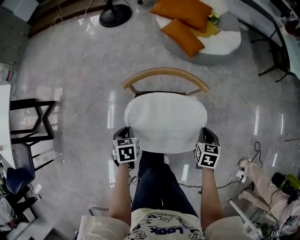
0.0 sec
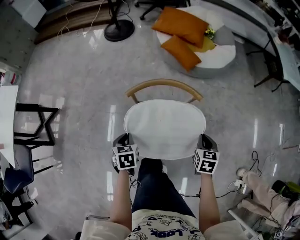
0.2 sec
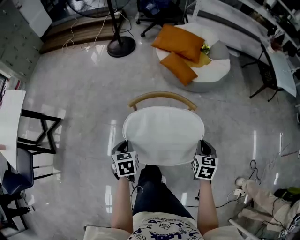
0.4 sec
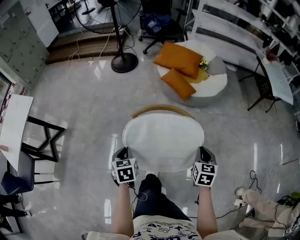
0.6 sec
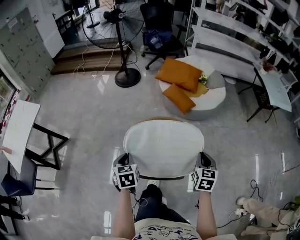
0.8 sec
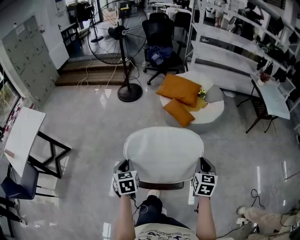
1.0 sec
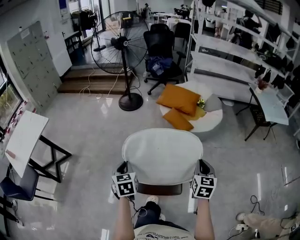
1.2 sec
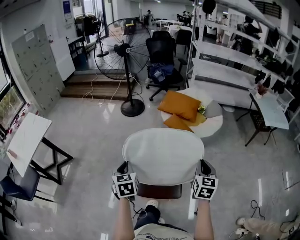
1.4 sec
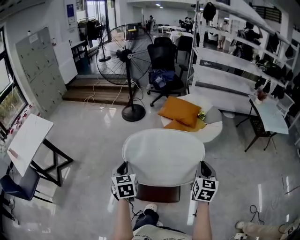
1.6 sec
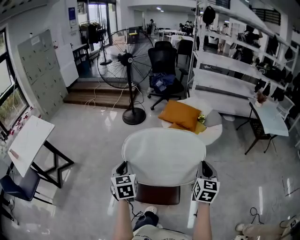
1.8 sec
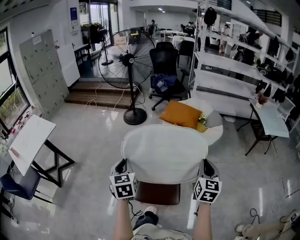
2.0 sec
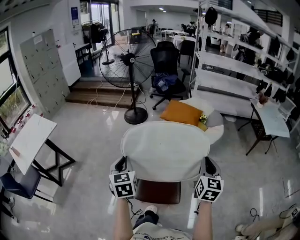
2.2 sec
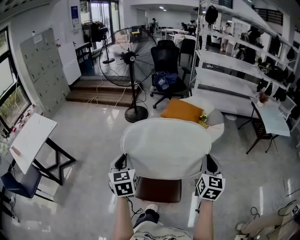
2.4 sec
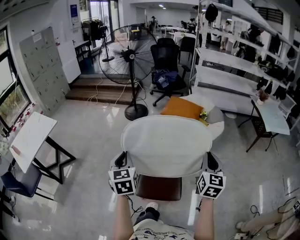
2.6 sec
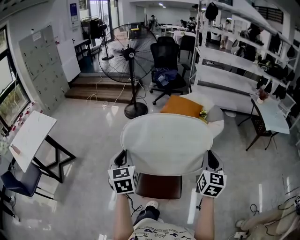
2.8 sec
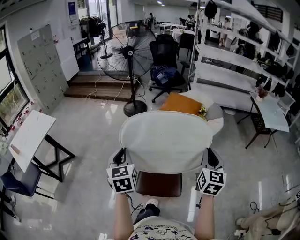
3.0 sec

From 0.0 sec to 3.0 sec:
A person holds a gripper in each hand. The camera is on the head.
From 0.0 sec to 1.6 sec: The two grippers go about 50 cm upward. The left gripper angles its fingers upward, by about 40 degrees. The right gripper tilts its fingers roughly 40 degrees upward.
From 1.6 sec to 3.0 sec: Both grippers move upward, some 10 cm.

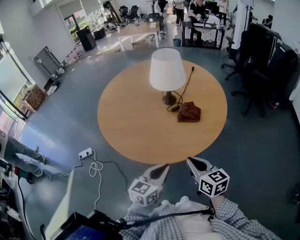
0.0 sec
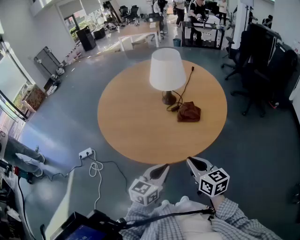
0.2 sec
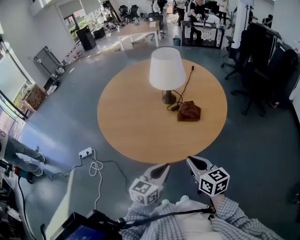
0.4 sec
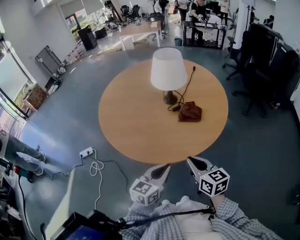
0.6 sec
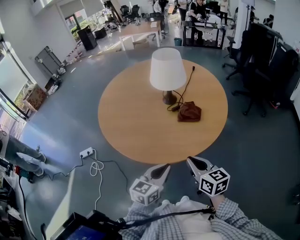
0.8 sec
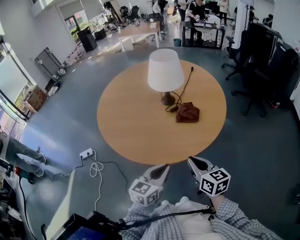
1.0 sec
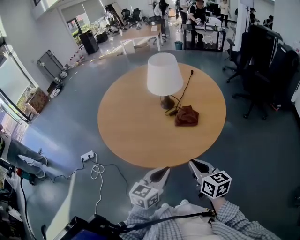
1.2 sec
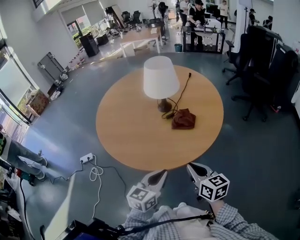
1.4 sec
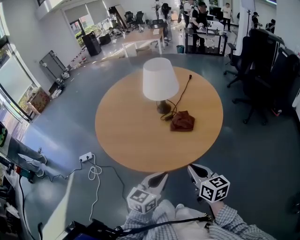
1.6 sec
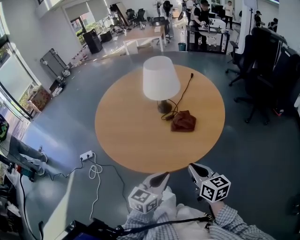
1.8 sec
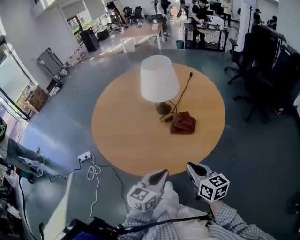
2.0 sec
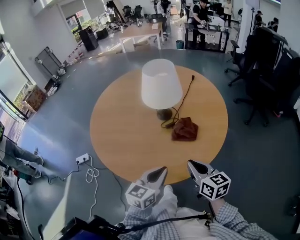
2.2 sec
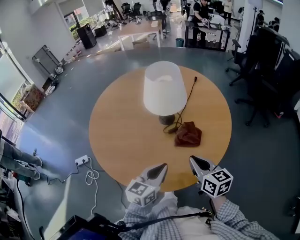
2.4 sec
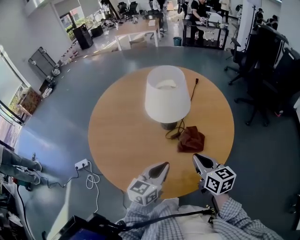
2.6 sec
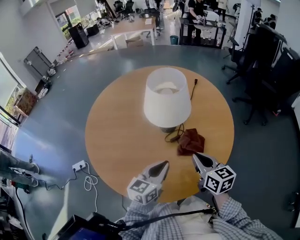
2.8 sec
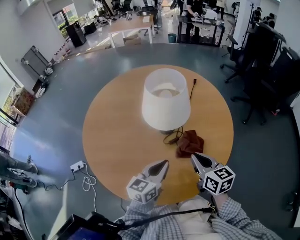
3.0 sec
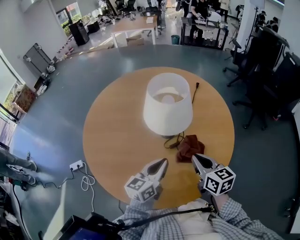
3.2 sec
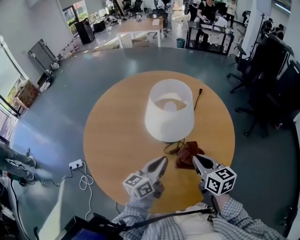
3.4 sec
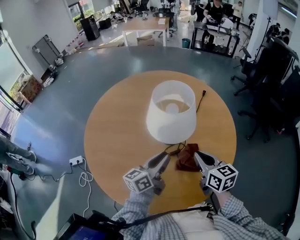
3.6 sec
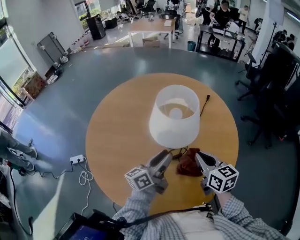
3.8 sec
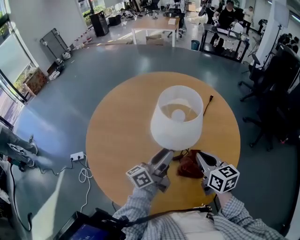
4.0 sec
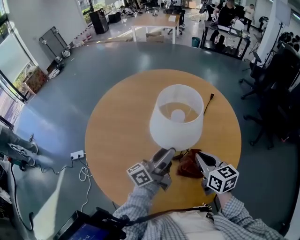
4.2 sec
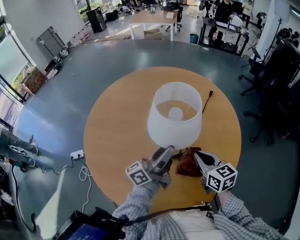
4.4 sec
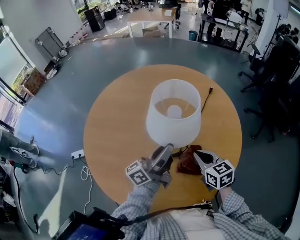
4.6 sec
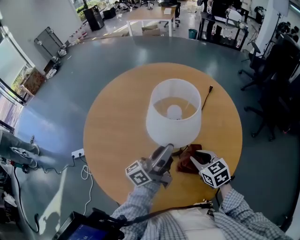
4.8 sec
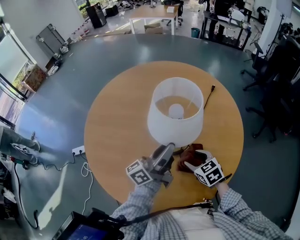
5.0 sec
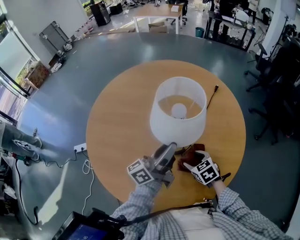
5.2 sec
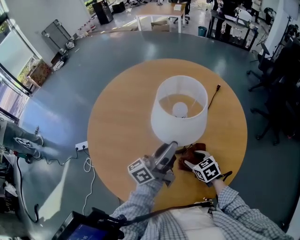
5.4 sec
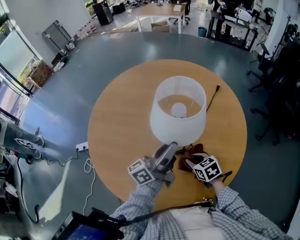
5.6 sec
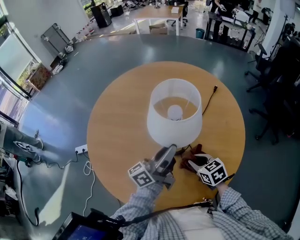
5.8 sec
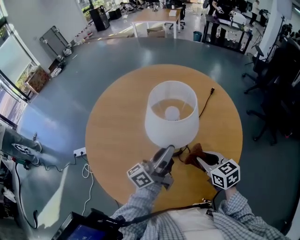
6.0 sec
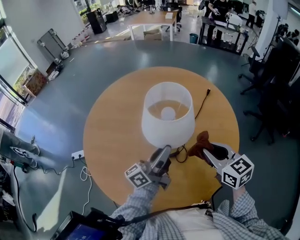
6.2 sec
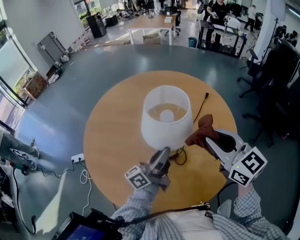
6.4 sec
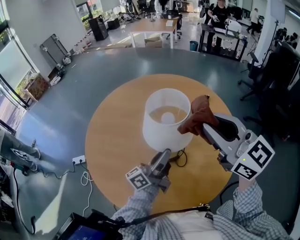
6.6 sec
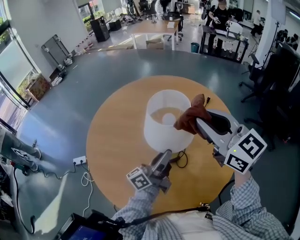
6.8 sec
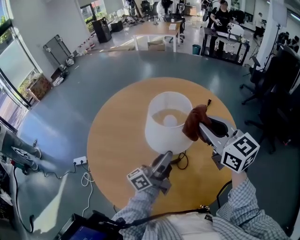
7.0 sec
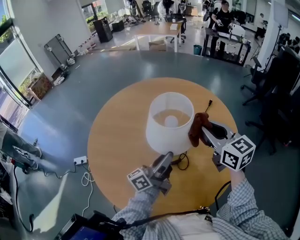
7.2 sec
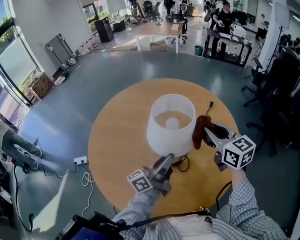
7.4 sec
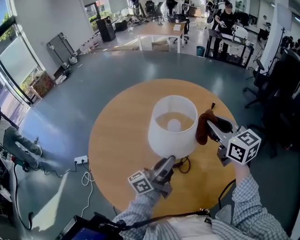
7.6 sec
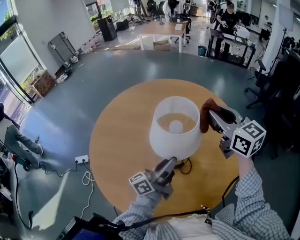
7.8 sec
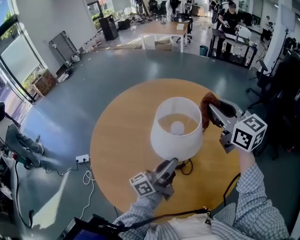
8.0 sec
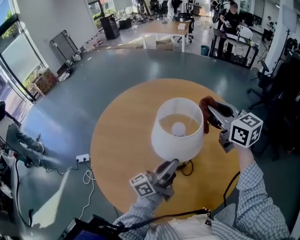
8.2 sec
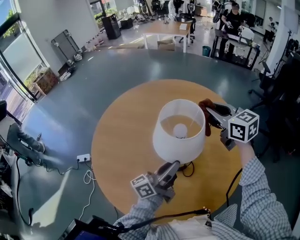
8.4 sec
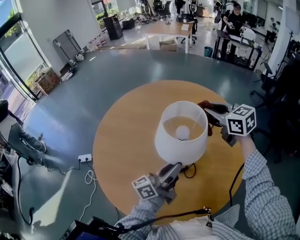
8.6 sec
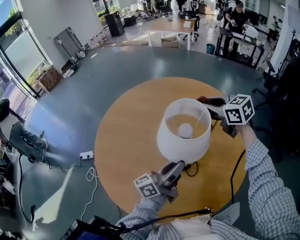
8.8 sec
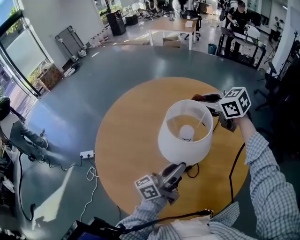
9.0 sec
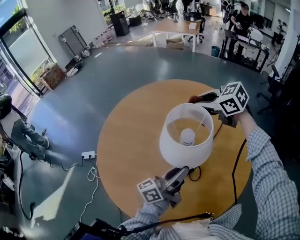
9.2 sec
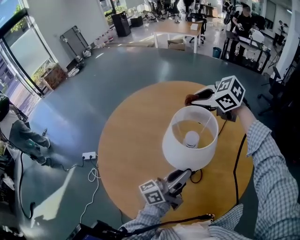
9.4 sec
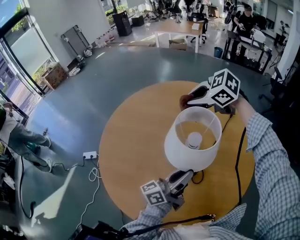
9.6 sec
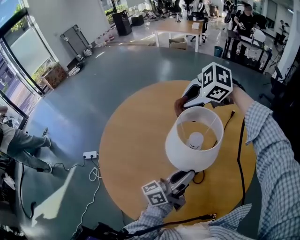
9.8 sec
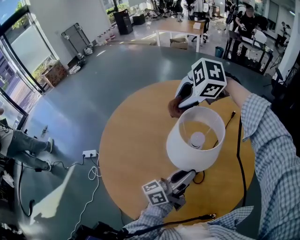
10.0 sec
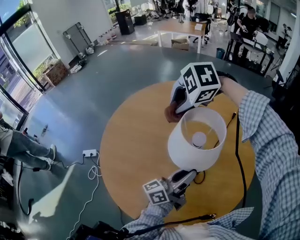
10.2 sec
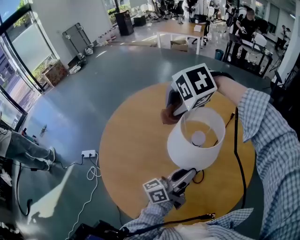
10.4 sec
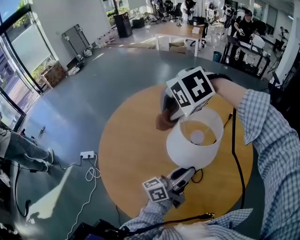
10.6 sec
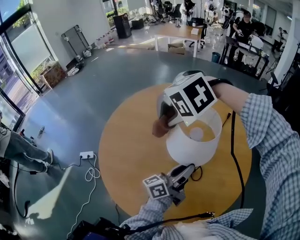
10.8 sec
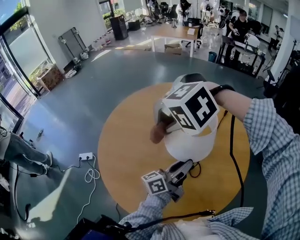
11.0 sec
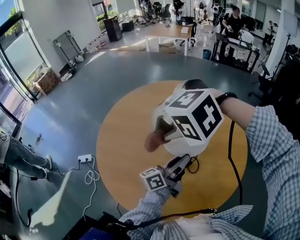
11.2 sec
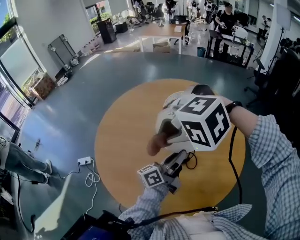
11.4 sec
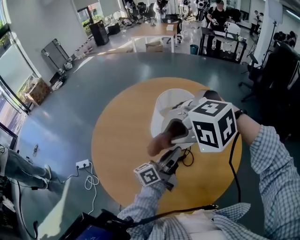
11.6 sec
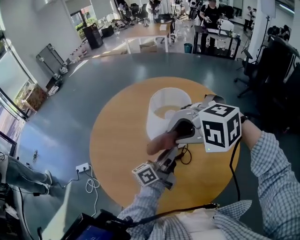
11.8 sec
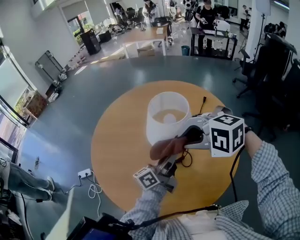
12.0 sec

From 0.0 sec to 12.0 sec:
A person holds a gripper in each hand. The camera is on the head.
From 0.0 sec to 1.6 sec: The right gripper heads to the right, covering roughly 5 cm.
From 1.6 sec to 3.0 sec: Both grippers move forward, approximately 20 cm.
From 3.0 sec to 4.4 sec: The right gripper heads forward, covering approximately 10 cm. Meanwhile the left gripper shifts roughly 15 cm forward and upward, tips its fingers upward by about 40 degrees, and opens its fingers.
From 4.4 sec to 6.0 sec: The left gripper closes up. Meanwhile the right gripper travels downward and back again, approximately 15 cm each way, and opens, then closes again.
From 6.0 sec to 7.6 sec: The right gripper moves upward and forward, roughly 25 cm, and rotates some 30 degrees.
From 7.6 sec to 9.0 sec: The right gripper shifts approximately 15 cm forward and to the left, and changes its angle by approximately 30 degrees.
From 9.0 sec to 10.4 sec: The right gripper changes place by about 15 cm, and points its fingers roughly 40 degrees further downward.
From 10.4 sec to 12.0 sec: The right gripper changes place by about 20 cm, and rotates roughly 30 degrees.

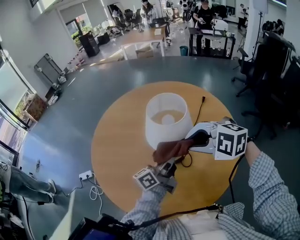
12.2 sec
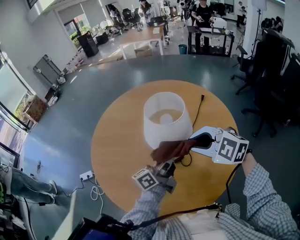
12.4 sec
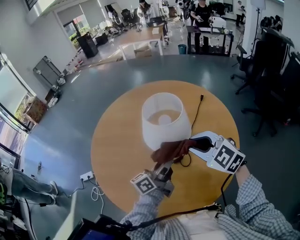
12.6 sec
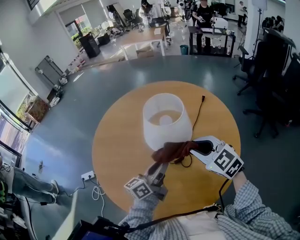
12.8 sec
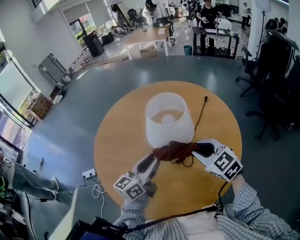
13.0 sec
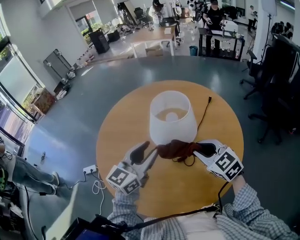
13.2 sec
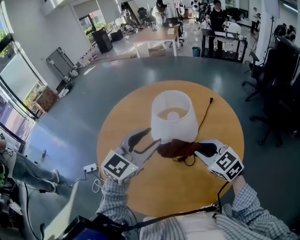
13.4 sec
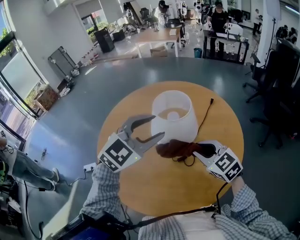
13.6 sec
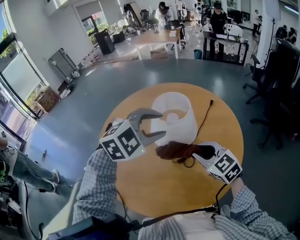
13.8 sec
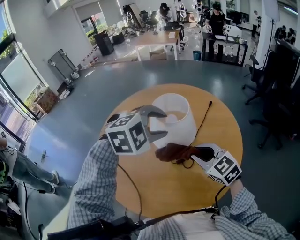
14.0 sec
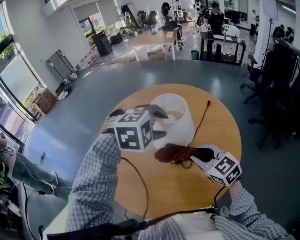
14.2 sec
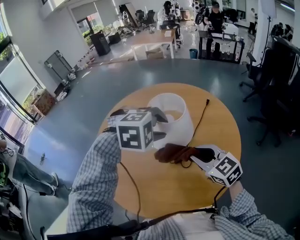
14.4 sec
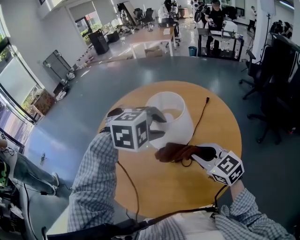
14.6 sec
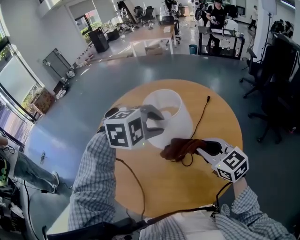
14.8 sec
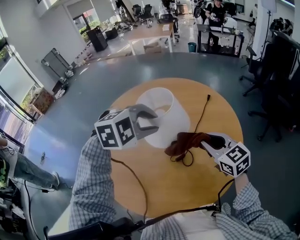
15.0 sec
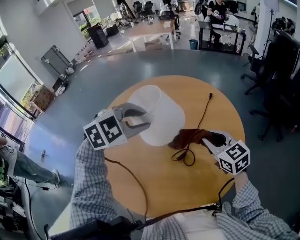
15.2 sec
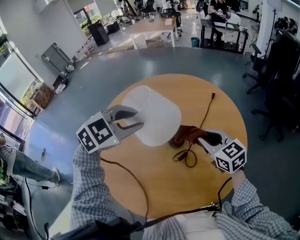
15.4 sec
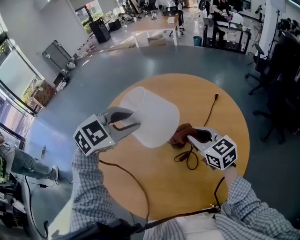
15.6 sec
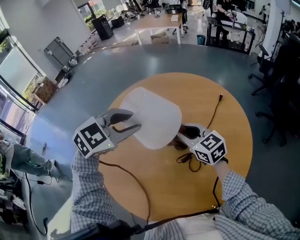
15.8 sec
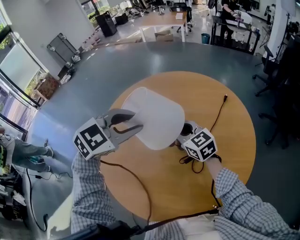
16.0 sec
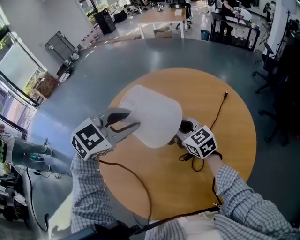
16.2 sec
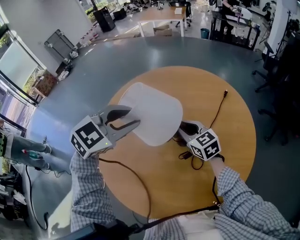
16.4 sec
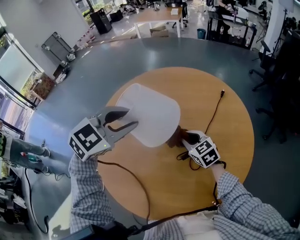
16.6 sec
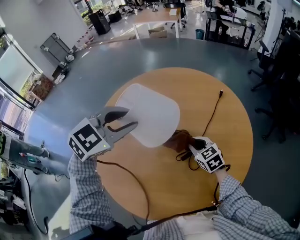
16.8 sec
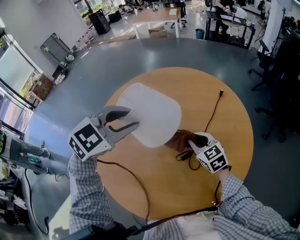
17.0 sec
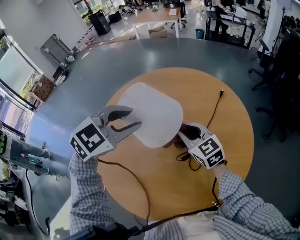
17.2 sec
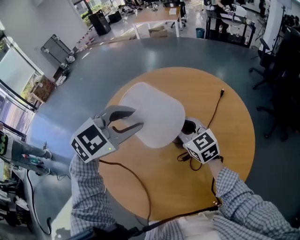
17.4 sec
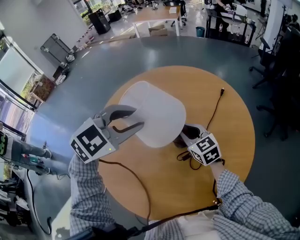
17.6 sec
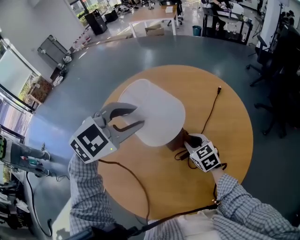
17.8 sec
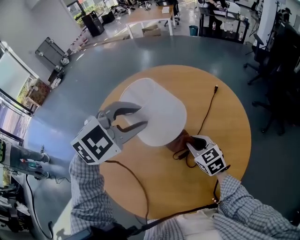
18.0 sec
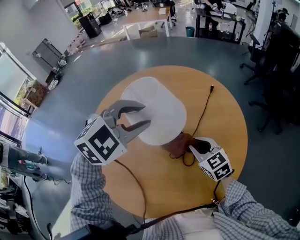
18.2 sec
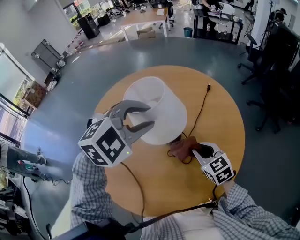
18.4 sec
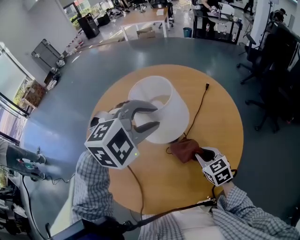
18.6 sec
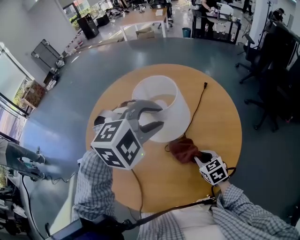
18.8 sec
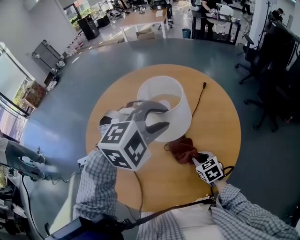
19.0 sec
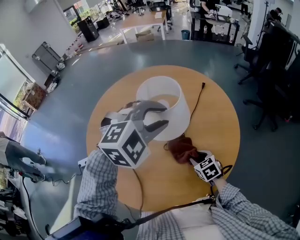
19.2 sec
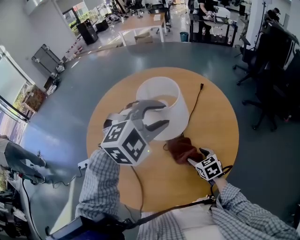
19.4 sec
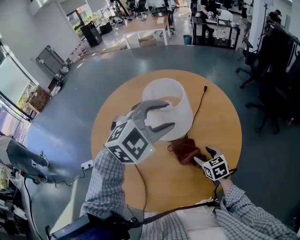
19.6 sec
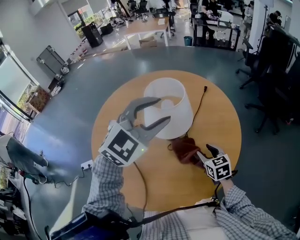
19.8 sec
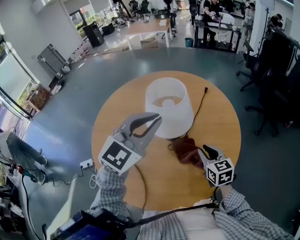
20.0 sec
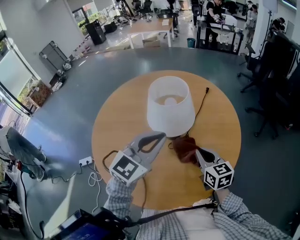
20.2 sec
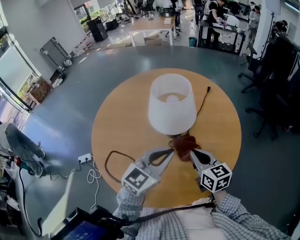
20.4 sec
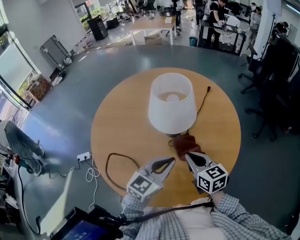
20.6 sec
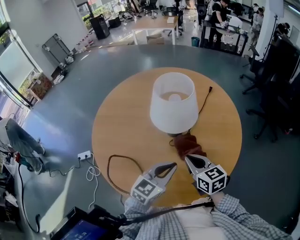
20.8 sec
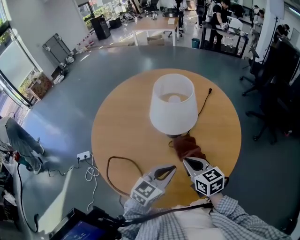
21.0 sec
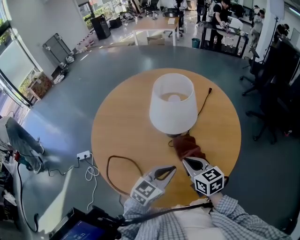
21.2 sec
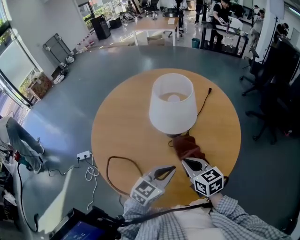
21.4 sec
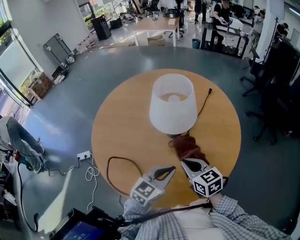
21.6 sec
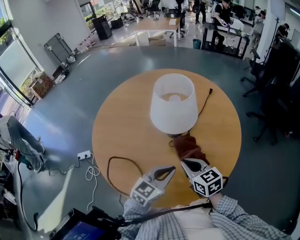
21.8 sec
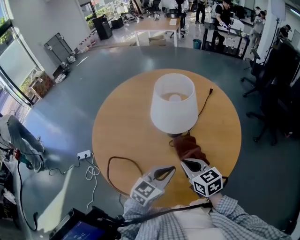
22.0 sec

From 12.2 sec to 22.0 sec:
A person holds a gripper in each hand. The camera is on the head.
From 12.2 sec to 13.6 sec: The right gripper shifts some 5 cm downward, and swivels about 40 degrees. The left gripper shifts some 15 cm upward, twists approximately 80 degrees clockwise, seen from behind, and opens its fingers.
From 13.6 sec to 15.0 sec: The right gripper ends up roughly 5 cm from where it was, while the left gripper tilts its fingers some 30 degrees downward, and closes.
From 15.0 sec to 16.4 sec: The right gripper moves to the left, forward and downward, roughly 20 cm. The left gripper is displaced to the left and forward by approximately 10 cm, and swivels about 30 degrees.
From 16.4 sec to 17.8 sec: The right gripper moves up and down over roughly 15 cm, changing direction 2 times.
From 17.8 sec to 19.2 sec: The right gripper travels backward, to the right and downward by about 15 cm. Meanwhile the left gripper is displaced to the right by approximately 10 cm, and rotates approximately 20 degrees.
From 19.2 sec to 20.6 sec: The right gripper heads upward and to the left, covering approximately 15 cm, tips its fingers upward by some 30 degrees, and closes up. Meanwhile the left gripper moves backward and downward, some 20 cm, twists roughly 50 degrees counterclockwise, seen from behind, and closes its fingers.
From 20.6 sec to 22.0 sec: The left gripper heads downward, covering roughly 5 cm.
